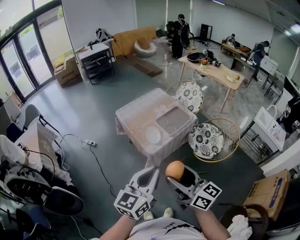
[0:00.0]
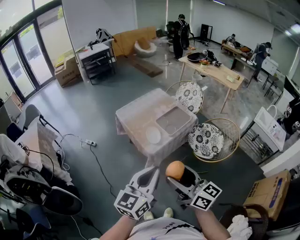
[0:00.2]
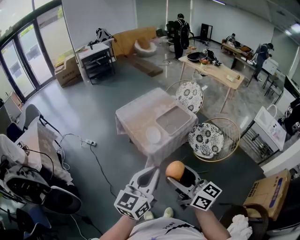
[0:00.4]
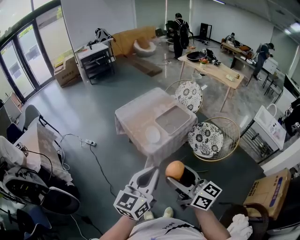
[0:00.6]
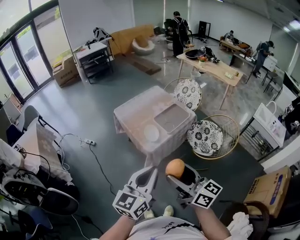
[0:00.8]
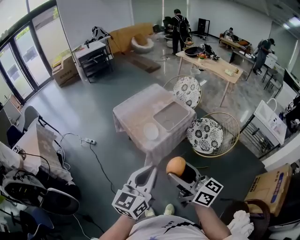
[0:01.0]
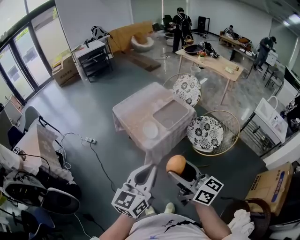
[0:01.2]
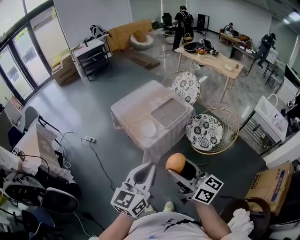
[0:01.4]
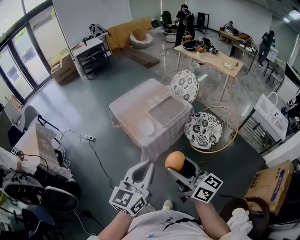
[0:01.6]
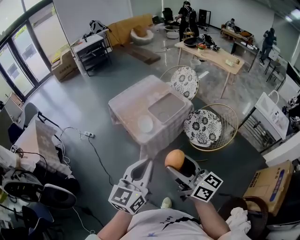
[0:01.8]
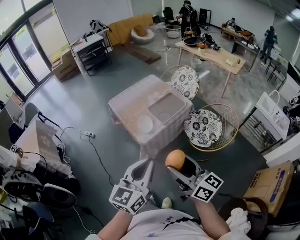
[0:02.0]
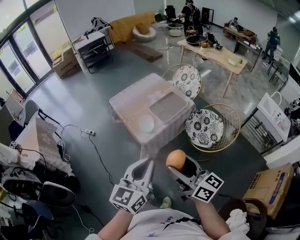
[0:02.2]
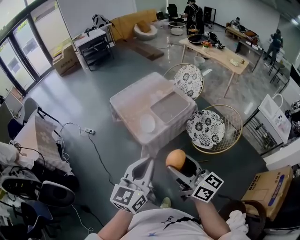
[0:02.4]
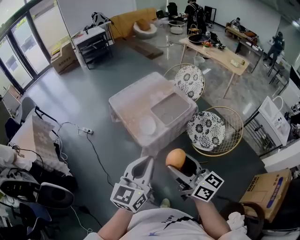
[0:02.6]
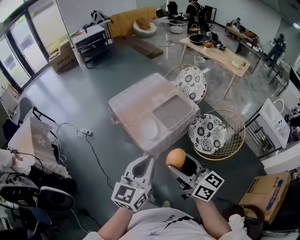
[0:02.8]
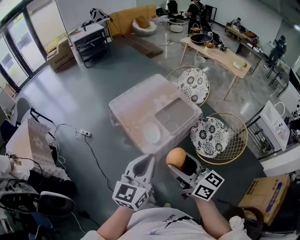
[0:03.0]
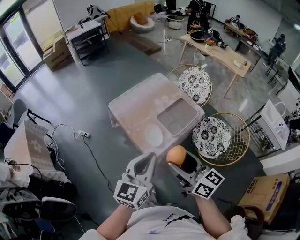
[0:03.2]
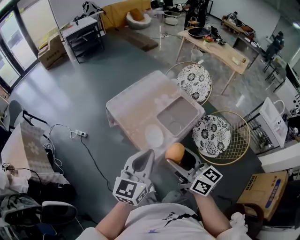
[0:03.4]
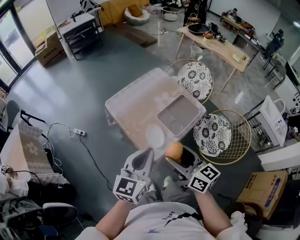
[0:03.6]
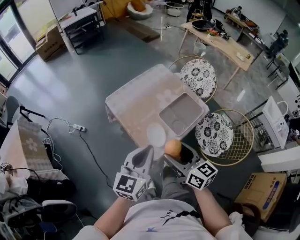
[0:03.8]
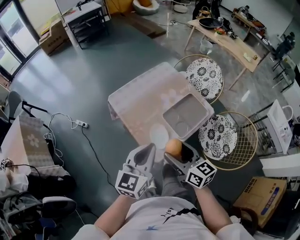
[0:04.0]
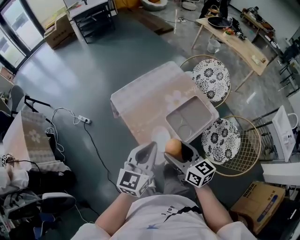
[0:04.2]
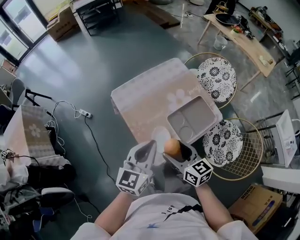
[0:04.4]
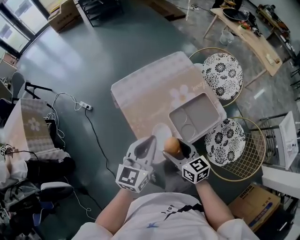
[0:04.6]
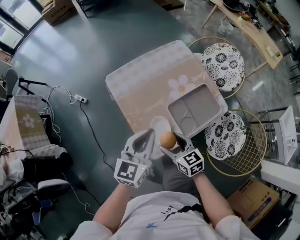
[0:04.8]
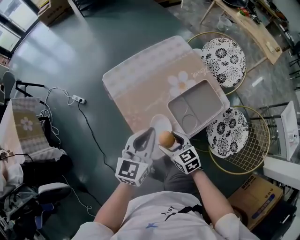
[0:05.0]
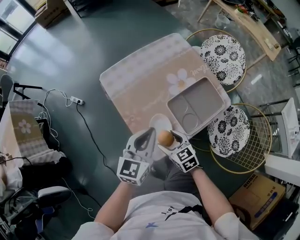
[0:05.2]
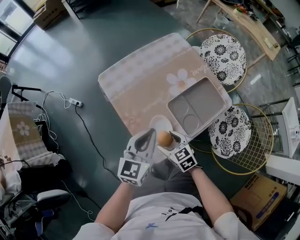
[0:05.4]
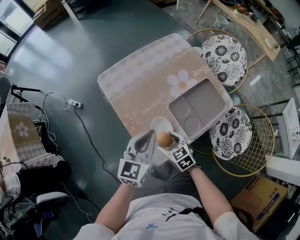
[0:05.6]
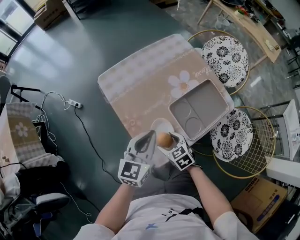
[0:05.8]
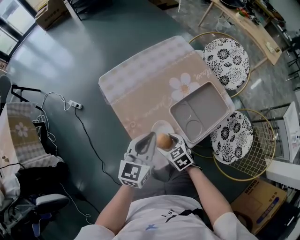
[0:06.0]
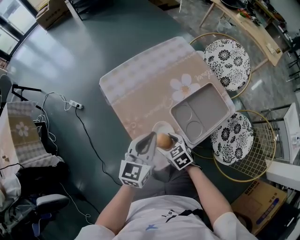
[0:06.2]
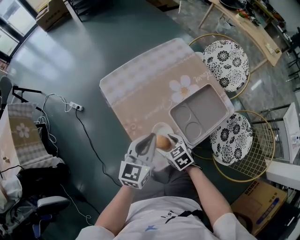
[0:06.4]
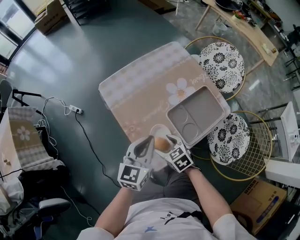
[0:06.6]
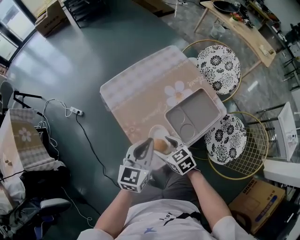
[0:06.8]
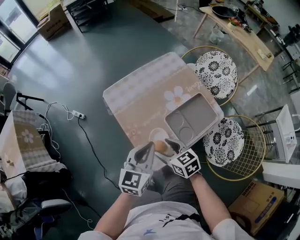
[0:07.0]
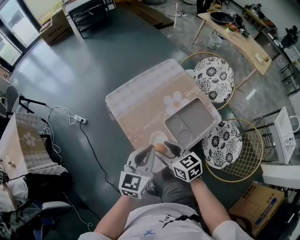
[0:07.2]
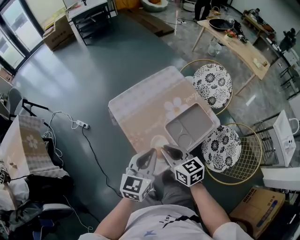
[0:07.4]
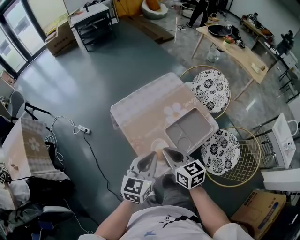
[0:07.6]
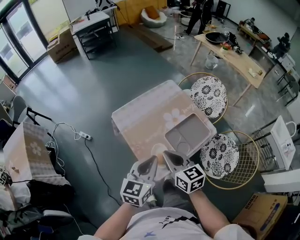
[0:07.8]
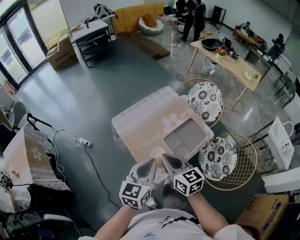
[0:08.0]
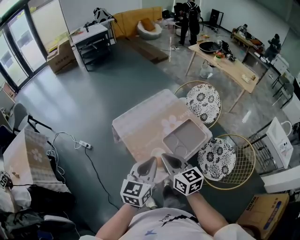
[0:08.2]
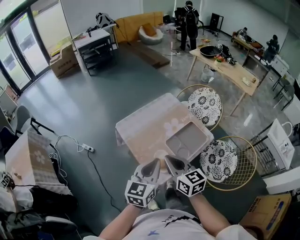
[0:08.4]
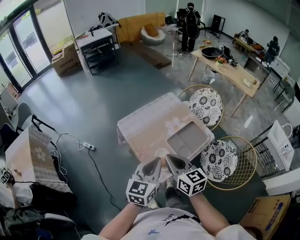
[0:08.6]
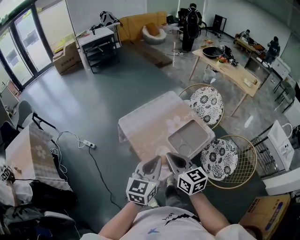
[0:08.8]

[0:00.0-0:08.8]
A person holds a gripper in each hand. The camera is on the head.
0:00.0 to 0:01.4: The grippers stay close to where they were, moving slightly.
0:01.4 to 0:03.0: The grippers both shift forward by about 15 cm.
0:03.0 to 0:04.4: The two grippers go some 25 cm forward and downward. The right gripper rotates about 30 degrees.
0:04.4 to 0:05.8: The right gripper moves downward, about 25 cm, and rotates approximately 30 degrees. The left gripper travels downward by some 15 cm.
0:05.8 to 0:07.4: The right gripper moves upward, approximately 25 cm, rotates roughly 30 degrees, and closes; the left gripper heads upward, covering roughly 15 cm.
0:07.4 to 0:08.8: Both grippers move upward and backward, roughly 10 cm.

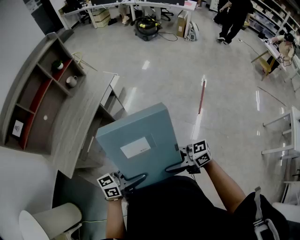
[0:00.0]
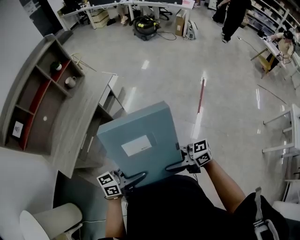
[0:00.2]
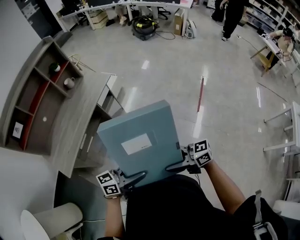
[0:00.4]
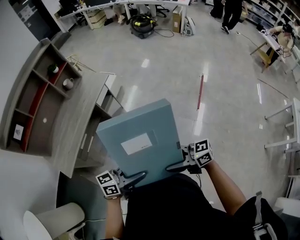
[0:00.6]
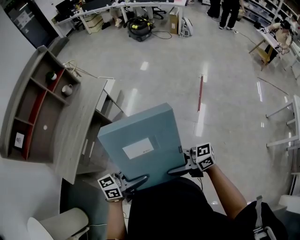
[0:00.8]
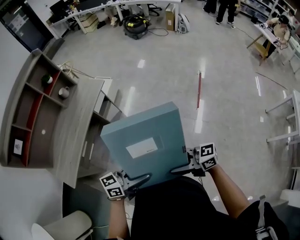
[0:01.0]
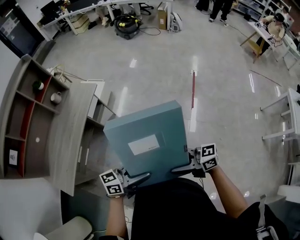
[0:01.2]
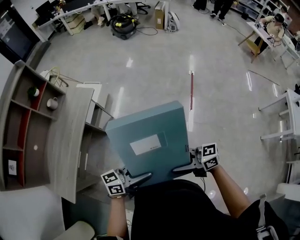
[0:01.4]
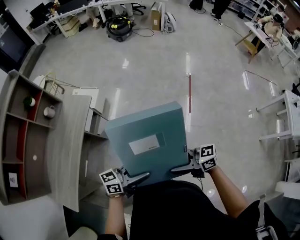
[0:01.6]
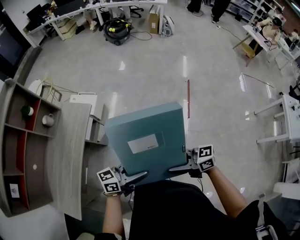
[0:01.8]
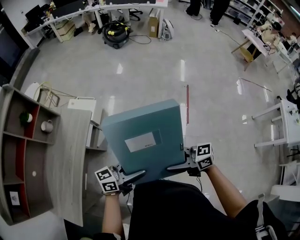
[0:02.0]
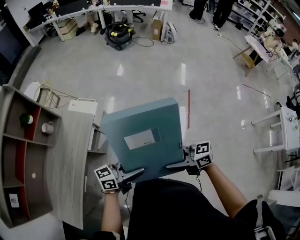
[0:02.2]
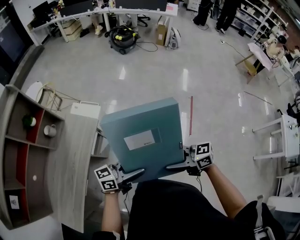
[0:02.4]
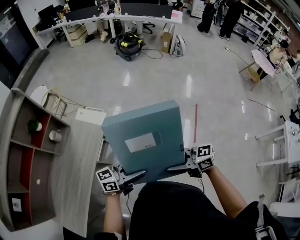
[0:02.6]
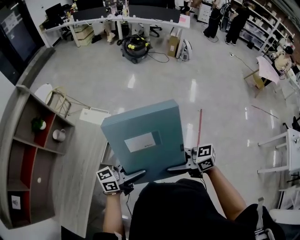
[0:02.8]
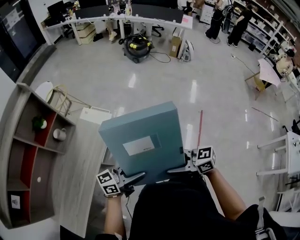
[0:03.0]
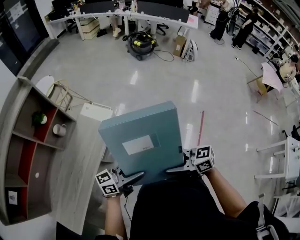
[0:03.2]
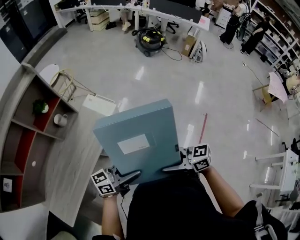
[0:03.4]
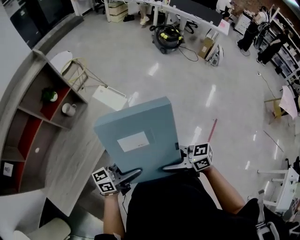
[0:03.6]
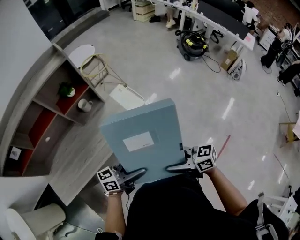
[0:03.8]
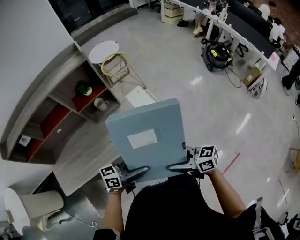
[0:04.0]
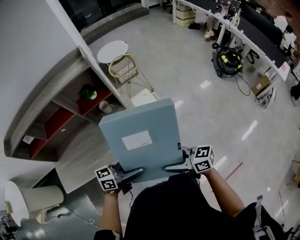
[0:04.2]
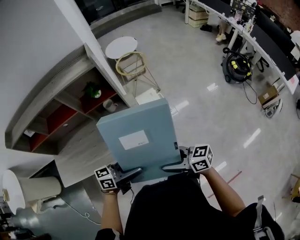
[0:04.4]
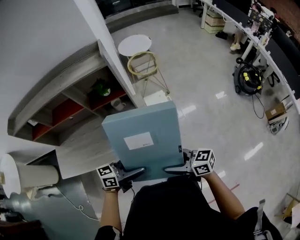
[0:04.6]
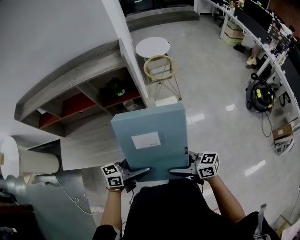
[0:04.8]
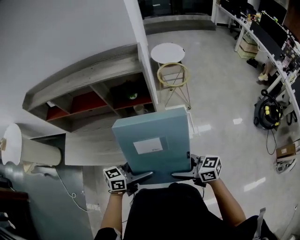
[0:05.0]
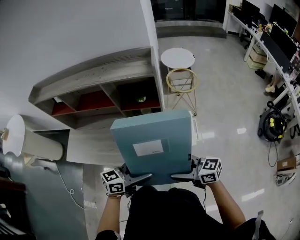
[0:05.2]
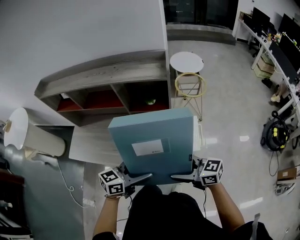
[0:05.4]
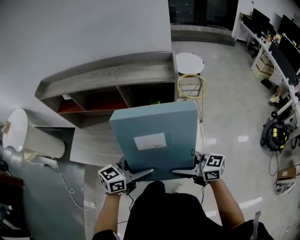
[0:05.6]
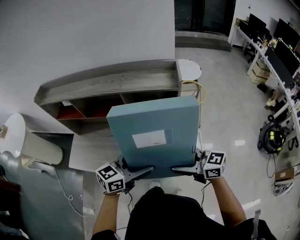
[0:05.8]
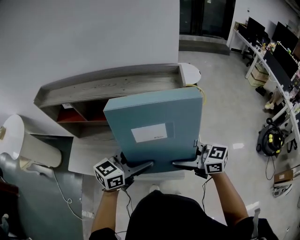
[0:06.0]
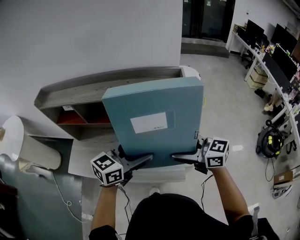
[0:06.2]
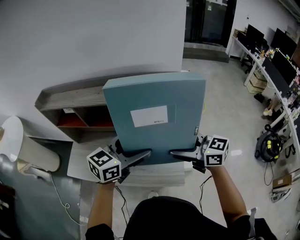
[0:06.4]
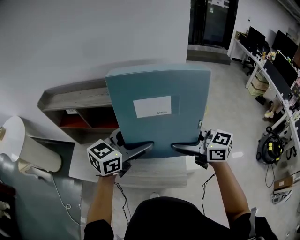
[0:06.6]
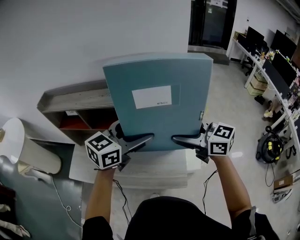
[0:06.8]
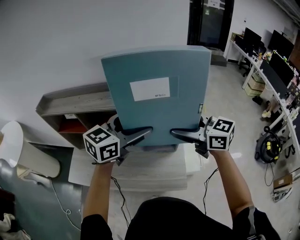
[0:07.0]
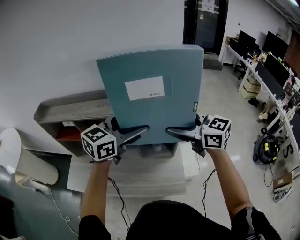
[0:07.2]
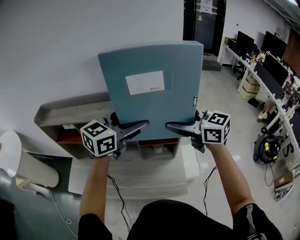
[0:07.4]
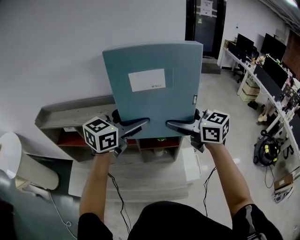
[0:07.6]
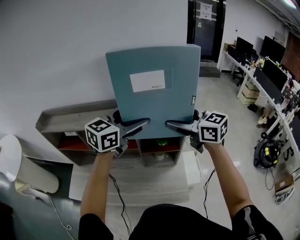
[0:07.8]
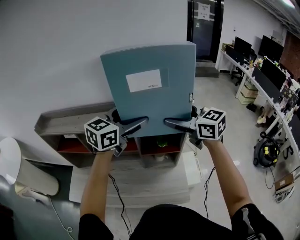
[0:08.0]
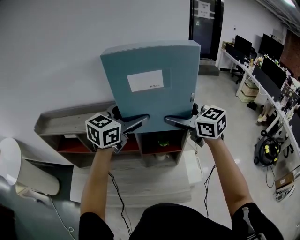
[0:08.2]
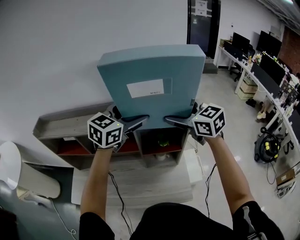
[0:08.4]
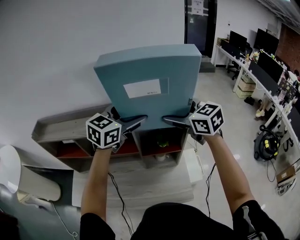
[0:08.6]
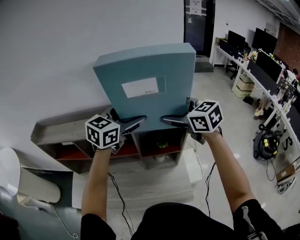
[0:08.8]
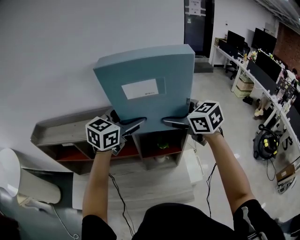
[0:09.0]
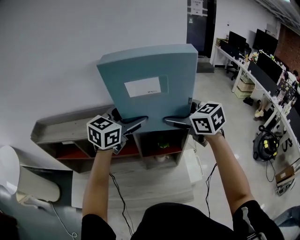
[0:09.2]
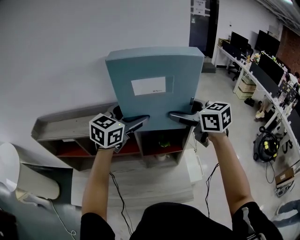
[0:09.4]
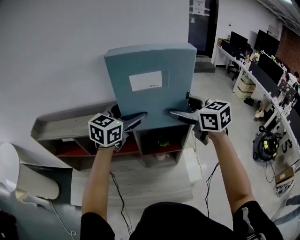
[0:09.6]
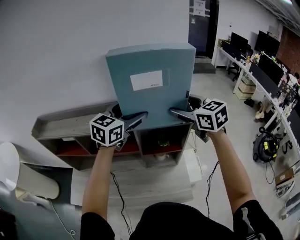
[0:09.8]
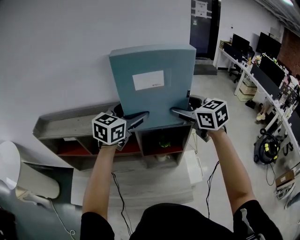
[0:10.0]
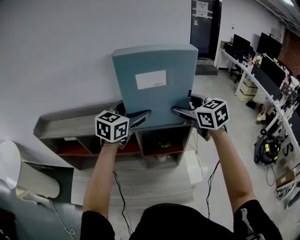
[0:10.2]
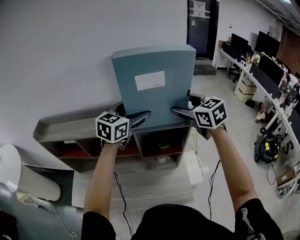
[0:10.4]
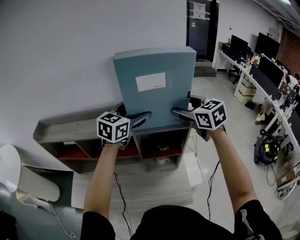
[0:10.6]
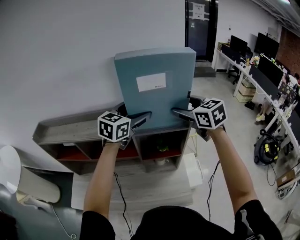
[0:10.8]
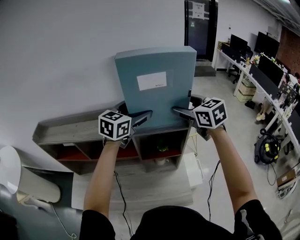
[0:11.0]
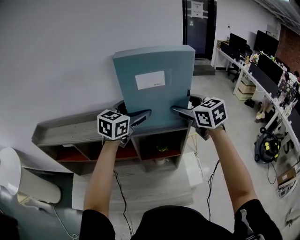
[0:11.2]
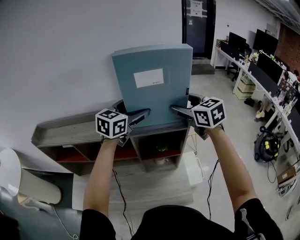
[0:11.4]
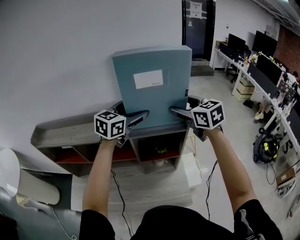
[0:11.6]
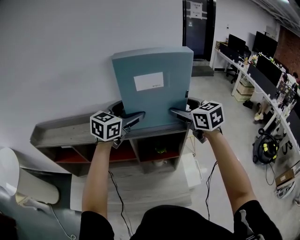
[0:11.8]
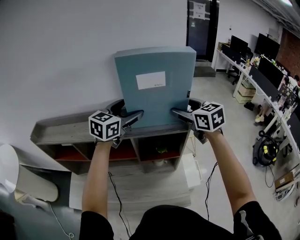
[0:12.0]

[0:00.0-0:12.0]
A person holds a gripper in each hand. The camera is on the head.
0:00.0 to 0:01.6: The right gripper changes place by about 20 cm; the left gripper changes place by some 25 cm.
0:01.6 to 0:03.0: The left gripper ends up approximately 35 cm from where it was. Meanwhile the right gripper shifts by some 35 cm.
0:03.0 to 0:04.4: The right gripper moves some 35 cm, and turns by about 40 degrees. Meanwhile the left gripper changes place by approximately 25 cm, and swivels approximately 50 degrees.
0:04.4 to 0:06.0: The right gripper moves about 30 cm, and rotates approximately 30 degrees, while the left gripper moves some 30 cm, and rotates approximately 40 degrees.
0:06.0 to 0:07.6: Both grippers travel together forward and upward, some 25 cm. The right gripper swivels about 20 degrees.
0:07.6 to 0:09.0: The grippers both shift forward by about 5 cm.
0:09.0 to 0:10.4: The grippers stay close to where they were, moving slightly.
0:10.4 to 0:12.0: The grippers stay close to where they were, moving slightly.

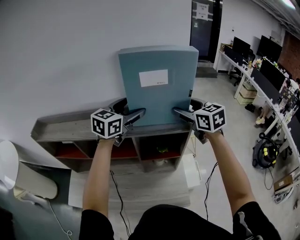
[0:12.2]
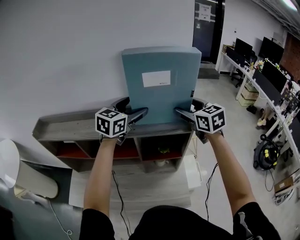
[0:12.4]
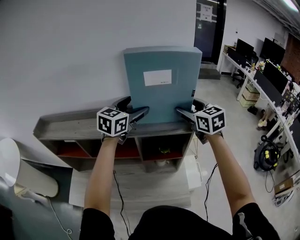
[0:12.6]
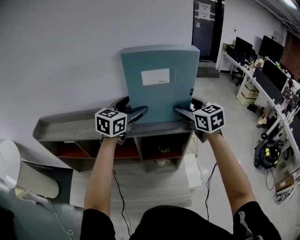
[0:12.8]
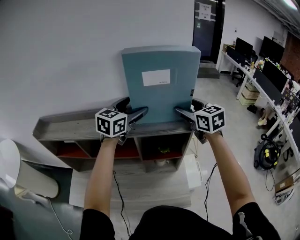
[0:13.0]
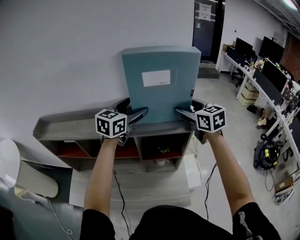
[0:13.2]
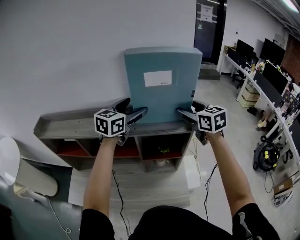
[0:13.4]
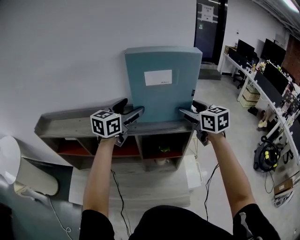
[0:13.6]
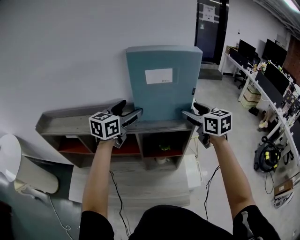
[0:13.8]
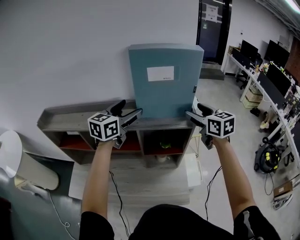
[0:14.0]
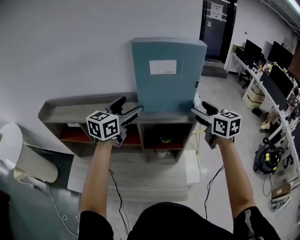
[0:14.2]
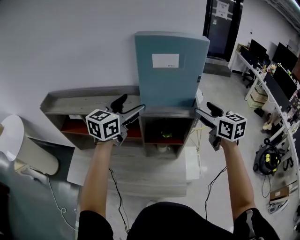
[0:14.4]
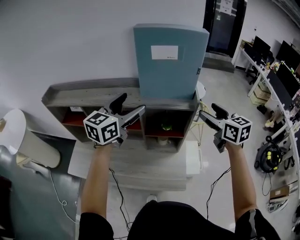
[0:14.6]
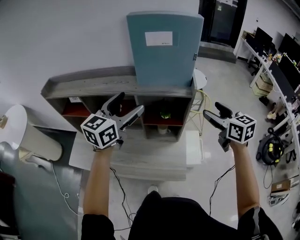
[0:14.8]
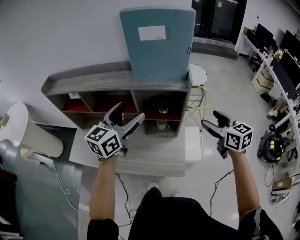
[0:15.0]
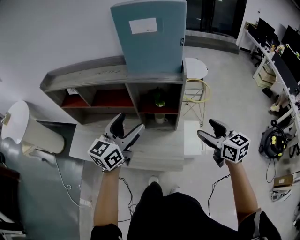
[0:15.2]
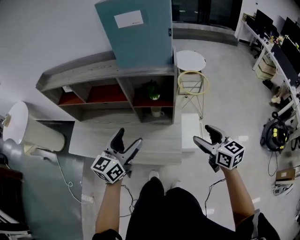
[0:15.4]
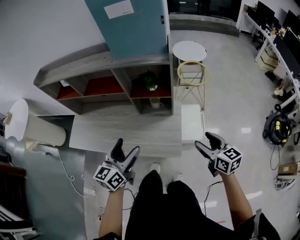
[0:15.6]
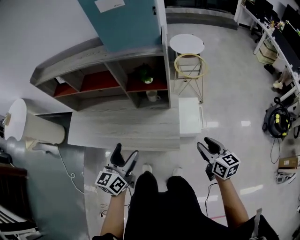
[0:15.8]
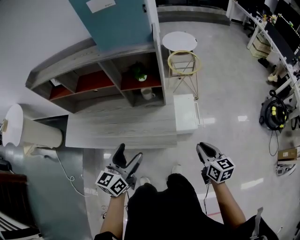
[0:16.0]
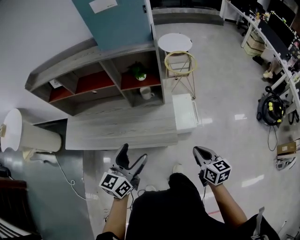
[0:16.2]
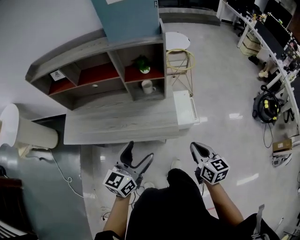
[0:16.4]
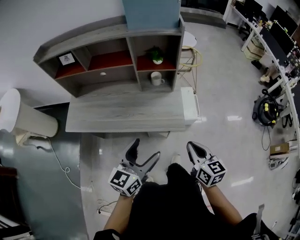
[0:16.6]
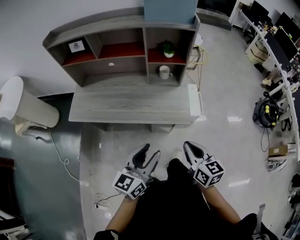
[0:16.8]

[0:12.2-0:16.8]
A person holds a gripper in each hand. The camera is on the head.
0:12.2 to 0:13.8: There are only small adjustments of the grippers.
0:13.8 to 0:15.2: The right gripper is displaced backward, downward and to the right by roughly 30 cm; the left gripper travels backward by about 25 cm.
0:15.2 to 0:16.8: The left gripper heads backward, covering roughly 35 cm, and closes its fingers; the right gripper moves backward and to the left, some 35 cm, and closes its fingers.
